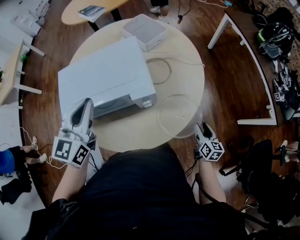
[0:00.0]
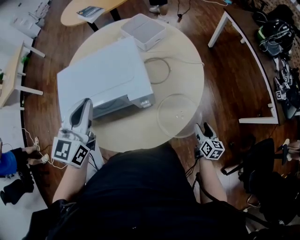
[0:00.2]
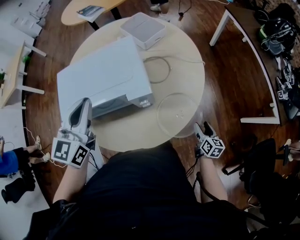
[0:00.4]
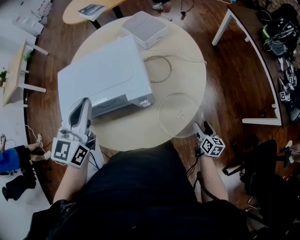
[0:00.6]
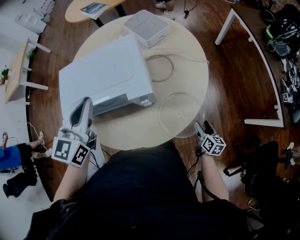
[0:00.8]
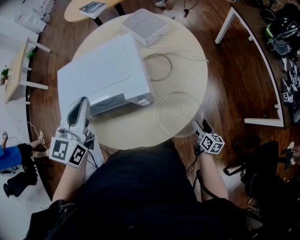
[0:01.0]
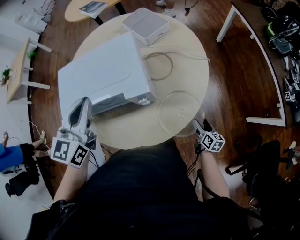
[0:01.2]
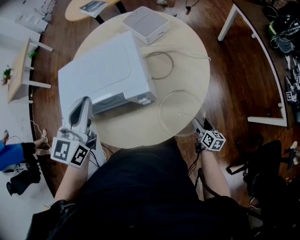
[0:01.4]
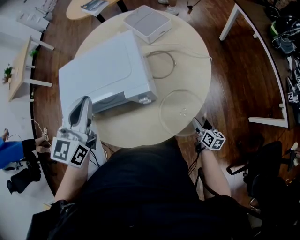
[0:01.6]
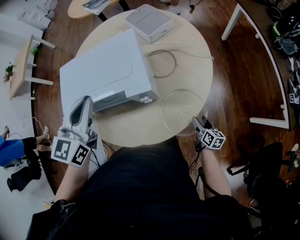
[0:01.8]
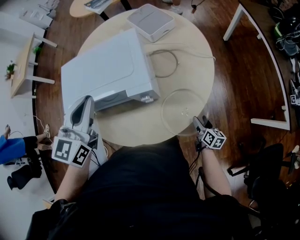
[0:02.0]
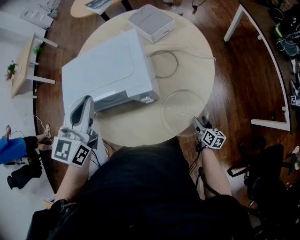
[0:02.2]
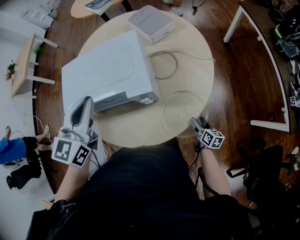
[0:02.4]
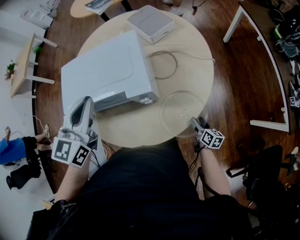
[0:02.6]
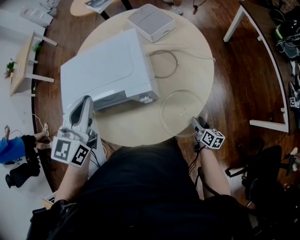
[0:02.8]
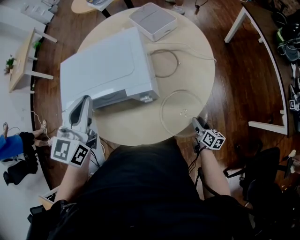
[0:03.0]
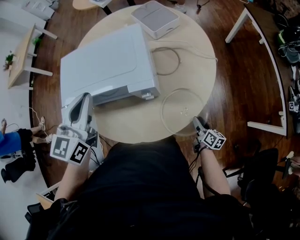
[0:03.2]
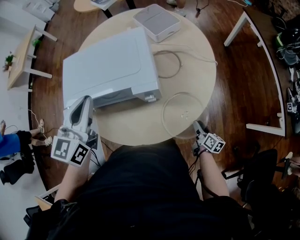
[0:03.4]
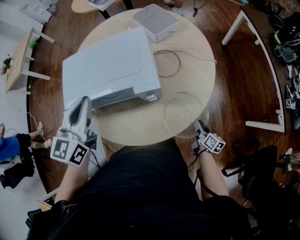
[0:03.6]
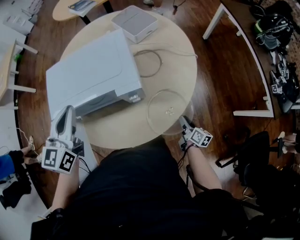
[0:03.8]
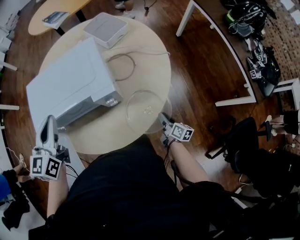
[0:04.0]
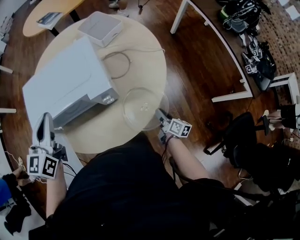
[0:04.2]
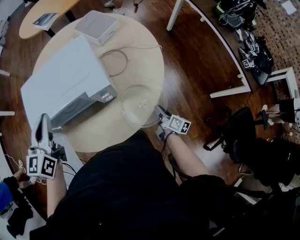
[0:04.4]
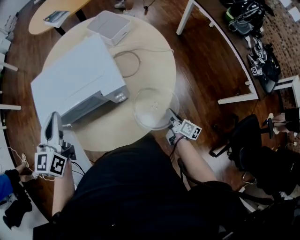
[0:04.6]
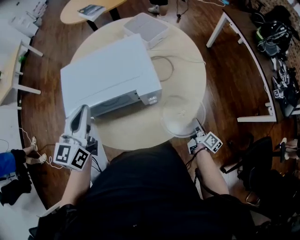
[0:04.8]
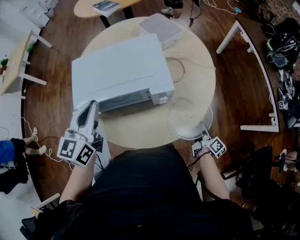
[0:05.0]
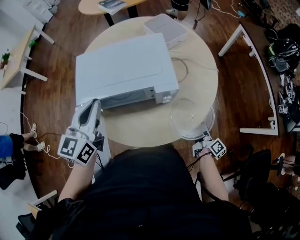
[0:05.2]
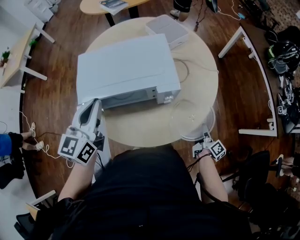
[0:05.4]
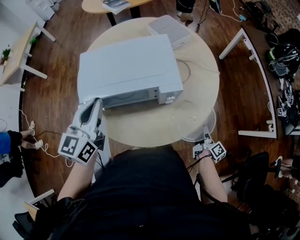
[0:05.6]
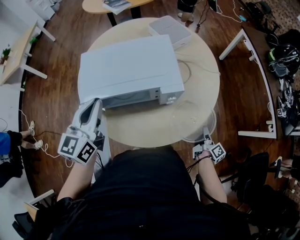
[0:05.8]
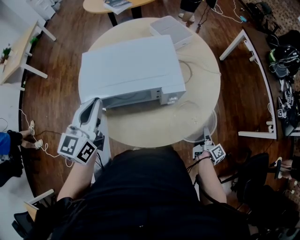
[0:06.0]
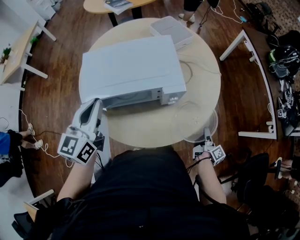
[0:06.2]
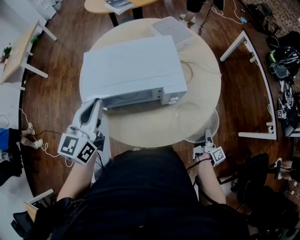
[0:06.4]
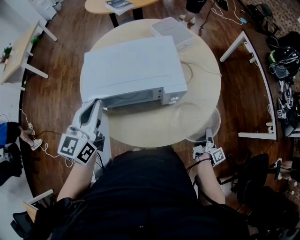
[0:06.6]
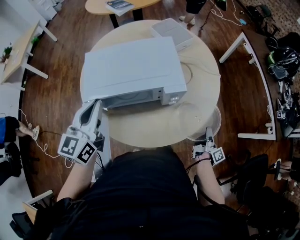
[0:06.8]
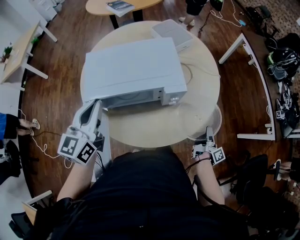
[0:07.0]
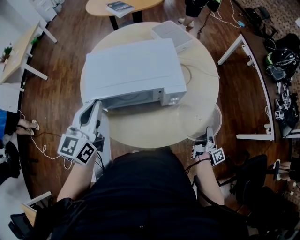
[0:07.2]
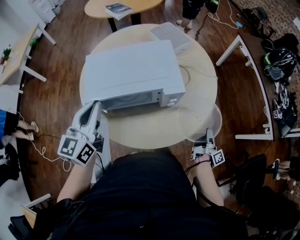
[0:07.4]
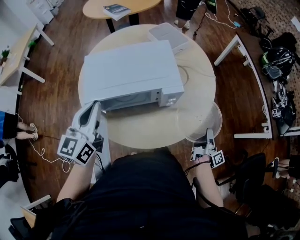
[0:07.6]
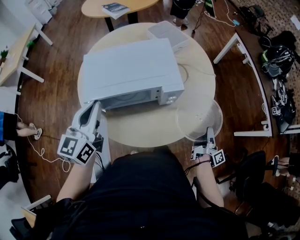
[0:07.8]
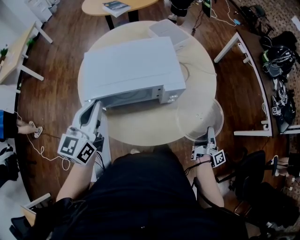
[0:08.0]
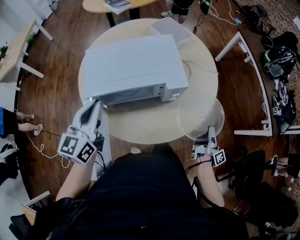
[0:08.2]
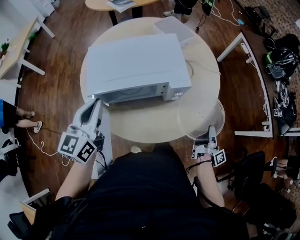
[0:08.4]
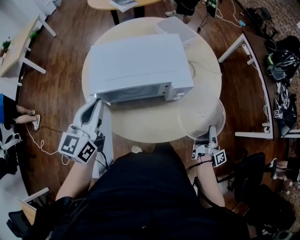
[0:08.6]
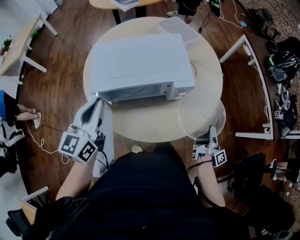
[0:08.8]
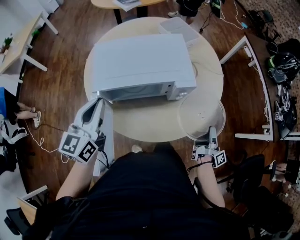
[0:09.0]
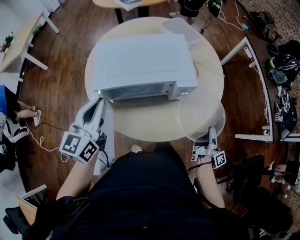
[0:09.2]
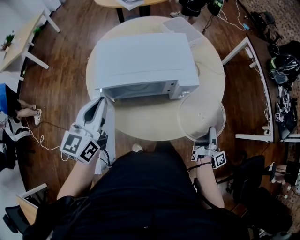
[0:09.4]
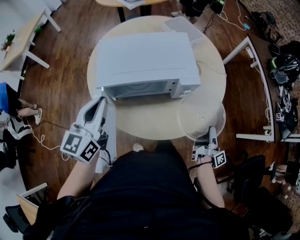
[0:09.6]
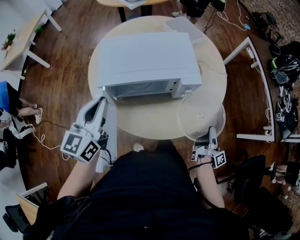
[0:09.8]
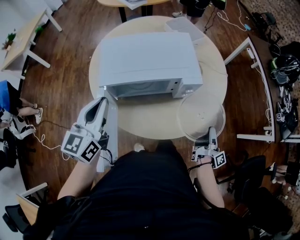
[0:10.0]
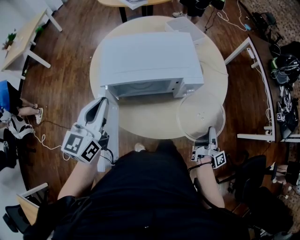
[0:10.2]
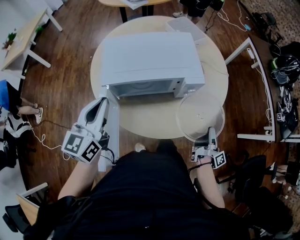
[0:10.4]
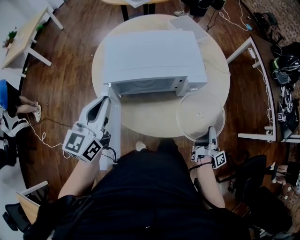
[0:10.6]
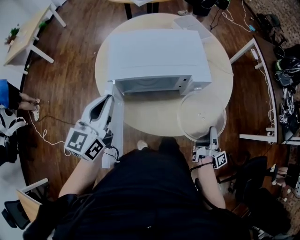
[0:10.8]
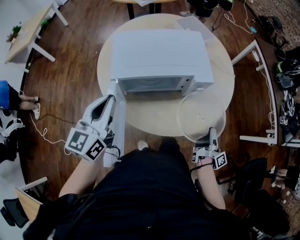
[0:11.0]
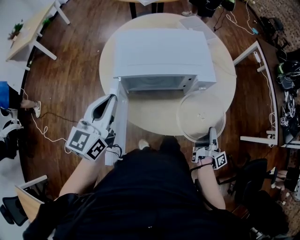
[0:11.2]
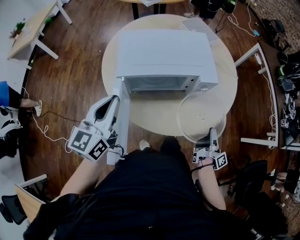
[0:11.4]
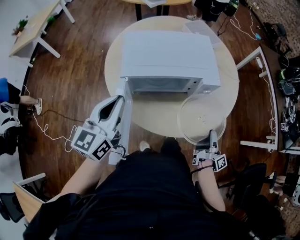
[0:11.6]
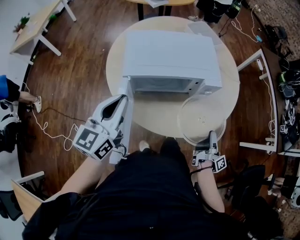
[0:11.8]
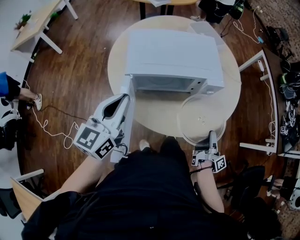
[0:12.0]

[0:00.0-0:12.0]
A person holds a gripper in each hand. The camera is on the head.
0:03.0 to 0:04.4: The left gripper moves approximately 5 cm.
0:04.4 to 0:06.0: The left gripper changes place by some 5 cm.

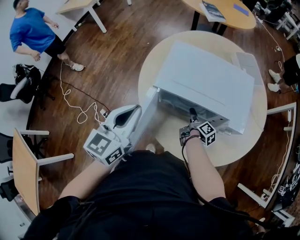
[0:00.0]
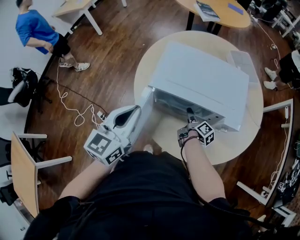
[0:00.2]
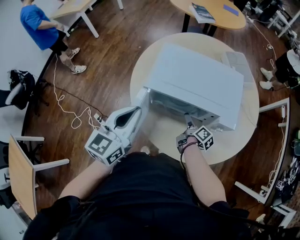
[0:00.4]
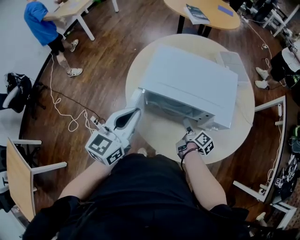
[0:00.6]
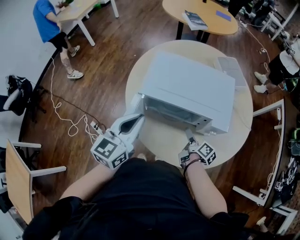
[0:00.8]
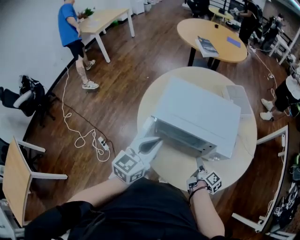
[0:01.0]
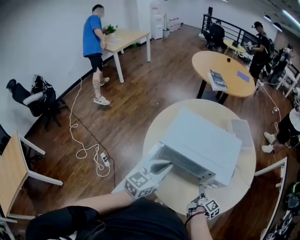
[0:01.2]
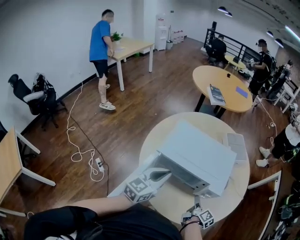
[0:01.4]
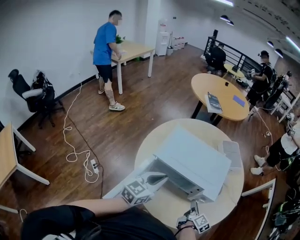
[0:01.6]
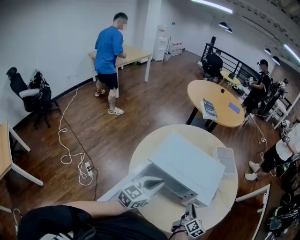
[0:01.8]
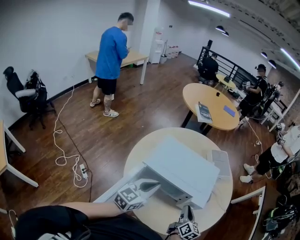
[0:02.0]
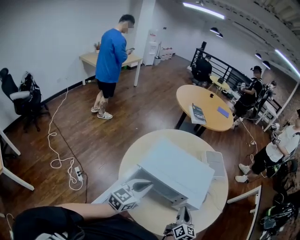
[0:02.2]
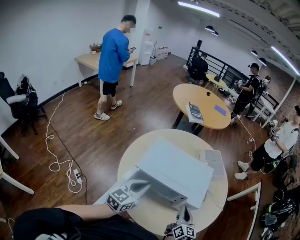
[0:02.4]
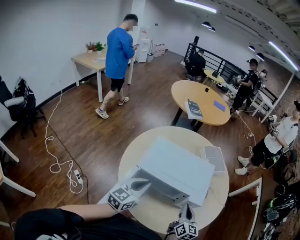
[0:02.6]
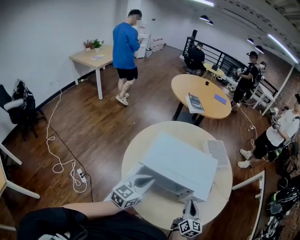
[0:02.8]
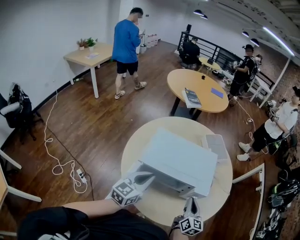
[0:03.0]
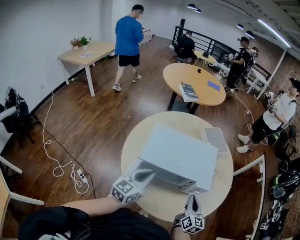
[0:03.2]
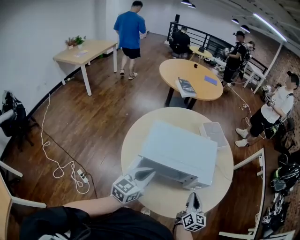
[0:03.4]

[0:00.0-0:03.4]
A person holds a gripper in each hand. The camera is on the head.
0:00.0 to 0:01.6: The left gripper shifts by about 15 cm.

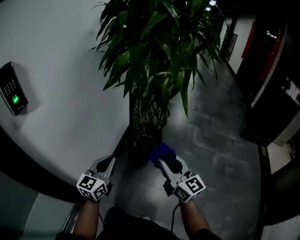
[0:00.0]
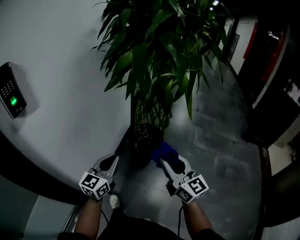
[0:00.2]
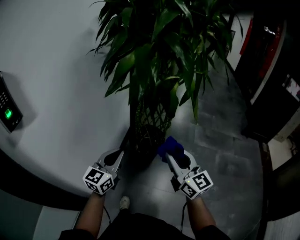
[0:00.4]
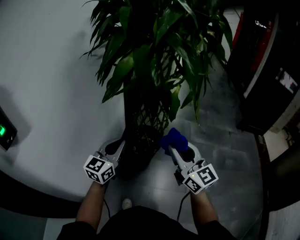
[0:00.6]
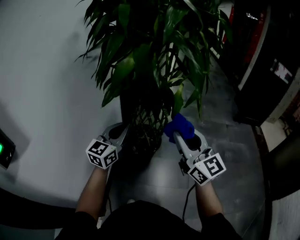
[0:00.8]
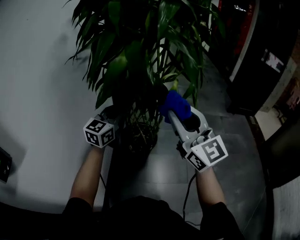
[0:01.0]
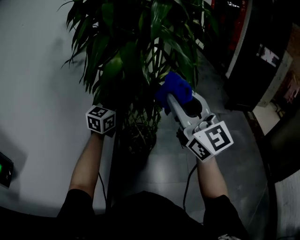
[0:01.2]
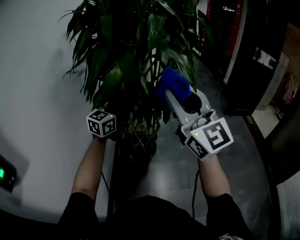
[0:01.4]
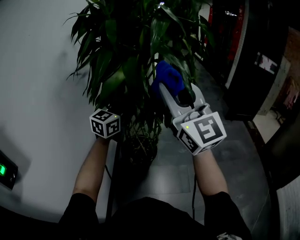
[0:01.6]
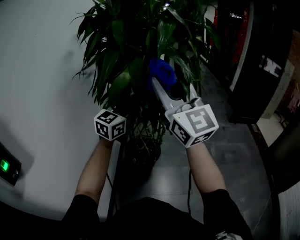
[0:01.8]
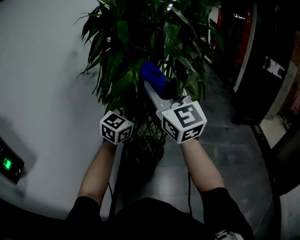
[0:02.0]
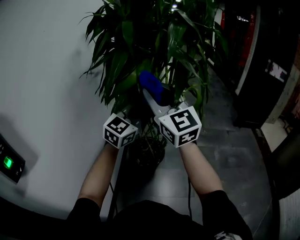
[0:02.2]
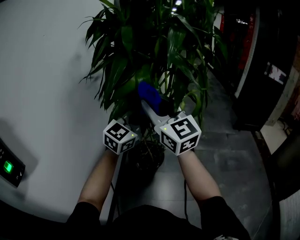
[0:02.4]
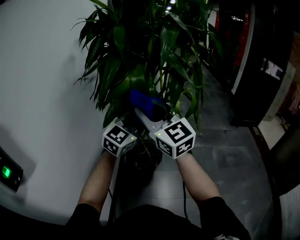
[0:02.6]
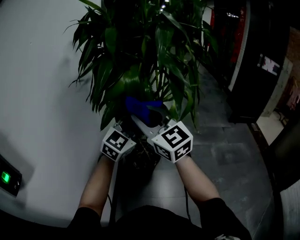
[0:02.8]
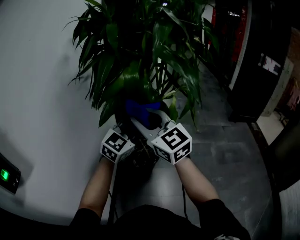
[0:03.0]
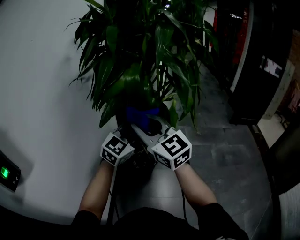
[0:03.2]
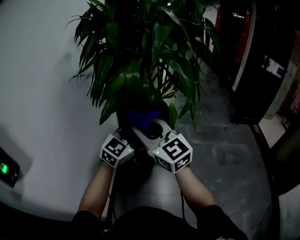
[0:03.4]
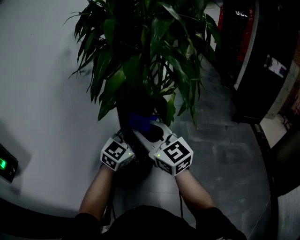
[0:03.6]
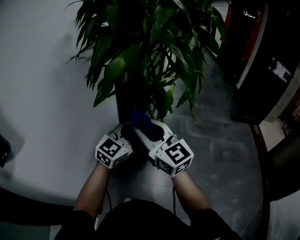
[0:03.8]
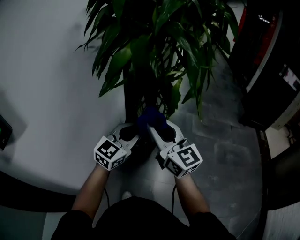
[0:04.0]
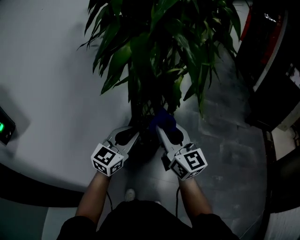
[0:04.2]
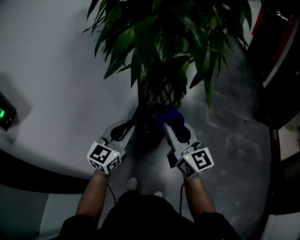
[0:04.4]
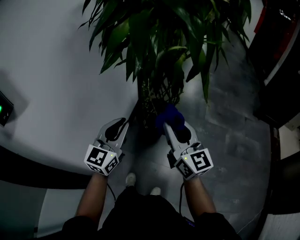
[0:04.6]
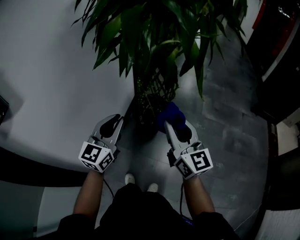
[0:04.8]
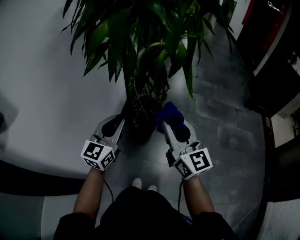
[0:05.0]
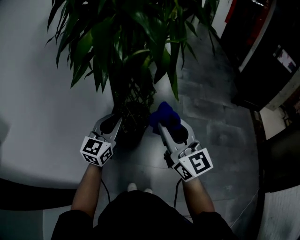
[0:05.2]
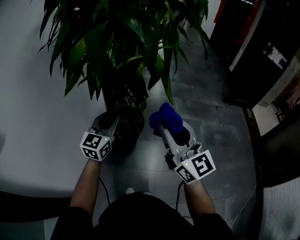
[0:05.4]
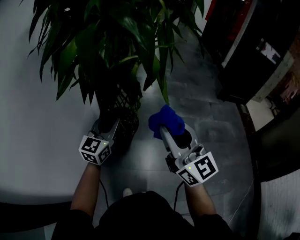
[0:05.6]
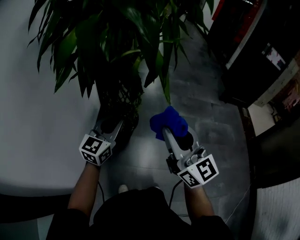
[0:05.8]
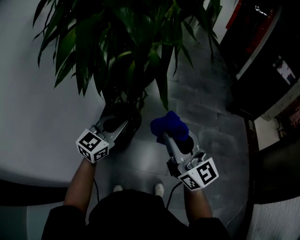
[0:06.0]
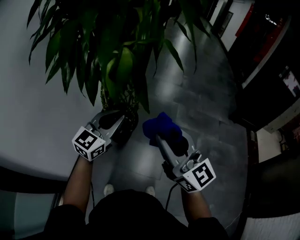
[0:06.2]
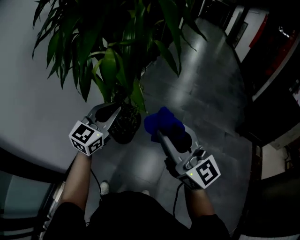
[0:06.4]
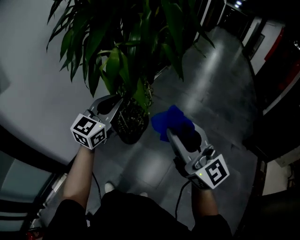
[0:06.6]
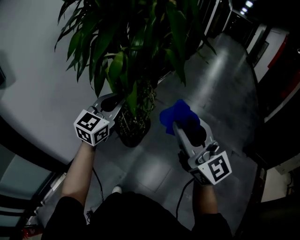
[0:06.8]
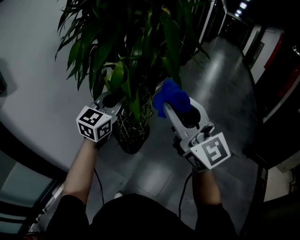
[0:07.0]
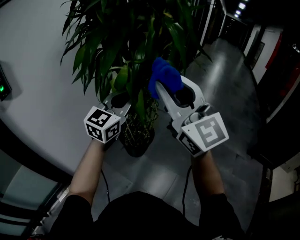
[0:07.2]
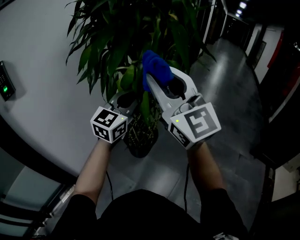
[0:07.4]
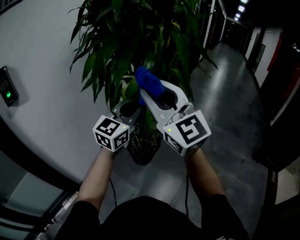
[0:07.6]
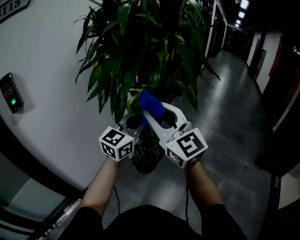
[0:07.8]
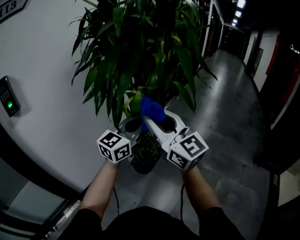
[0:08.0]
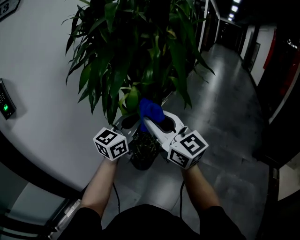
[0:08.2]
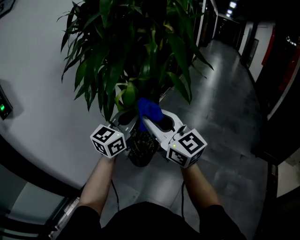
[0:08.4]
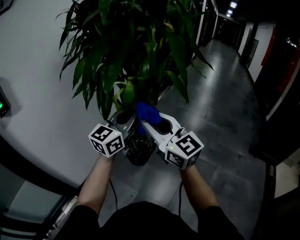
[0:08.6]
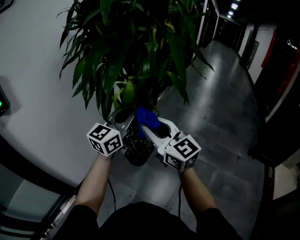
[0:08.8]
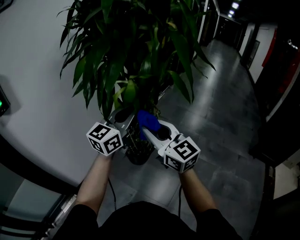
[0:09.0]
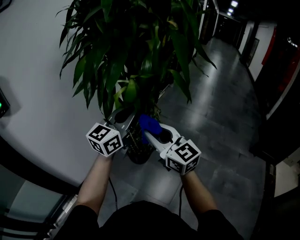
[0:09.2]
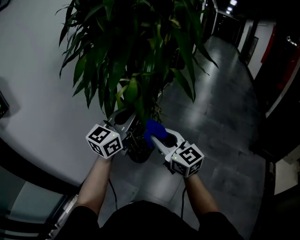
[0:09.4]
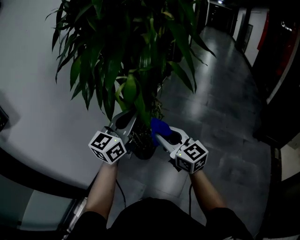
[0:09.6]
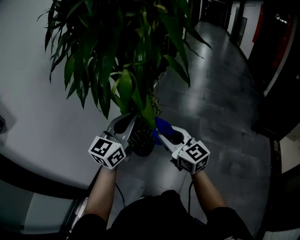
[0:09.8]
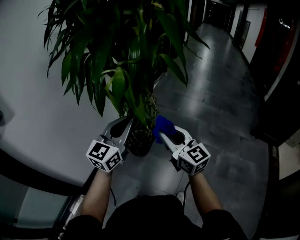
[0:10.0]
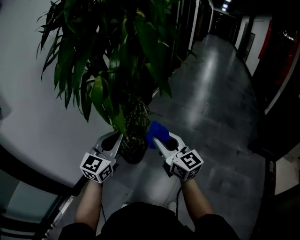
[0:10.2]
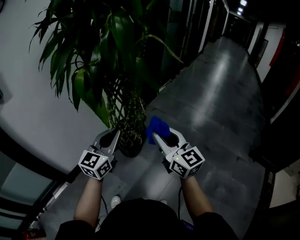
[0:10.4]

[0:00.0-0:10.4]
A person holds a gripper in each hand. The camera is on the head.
0:00.0 to 0:01.4: The left gripper moves forward and upward, approximately 35 cm, and changes its angle by roughly 30 degrees, while the right gripper shifts approximately 30 cm upward and forward, and turns by approximately 40 degrees.
0:01.4 to 0:03.0: The right gripper moves to the left and downward, about 15 cm, and turns by some 20 degrees, while the left gripper heads backward and to the right, covering some 10 cm, and rotates about 20 degrees.
0:03.0 to 0:04.4: The right gripper is displaced to the right, downward and backward by about 20 cm, and turns by some 20 degrees. Meanwhile the left gripper moves downward, backward and to the left, about 15 cm, and changes its angle by some 30 degrees.
0:04.4 to 0:06.0: The right gripper goes approximately 15 cm to the right. Meanwhile the left gripper goes about 15 cm to the right and forward.
0:06.0 to 0:07.4: The grippers both shift upward by some 15 cm. The left gripper swivels roughly 30 degrees. The right gripper swivels roughly 30 degrees.
0:07.4 to 0:09.0: The right gripper travels downward by about 20 cm, and swivels about 30 degrees.
0:09.0 to 0:10.4: The left gripper shifts some 15 cm downward, to the right and backward, and swivels about 20 degrees. The right gripper moves to the right, roughly 20 cm.
